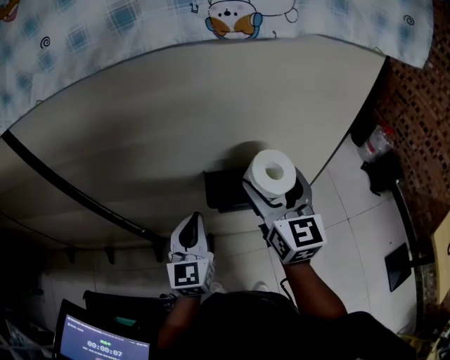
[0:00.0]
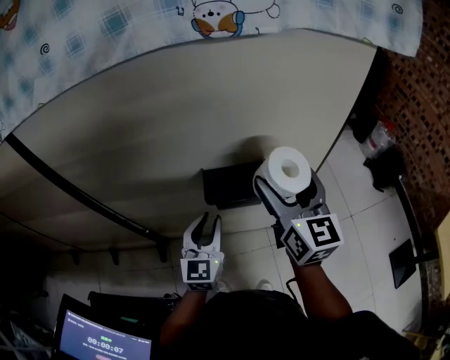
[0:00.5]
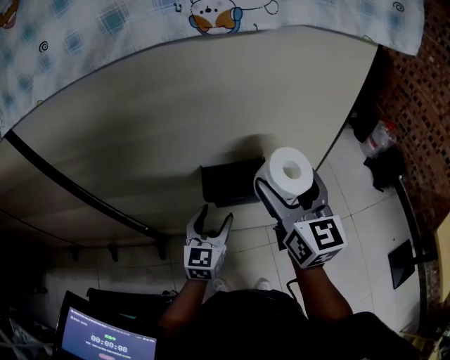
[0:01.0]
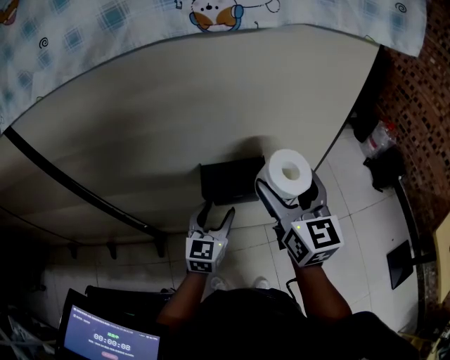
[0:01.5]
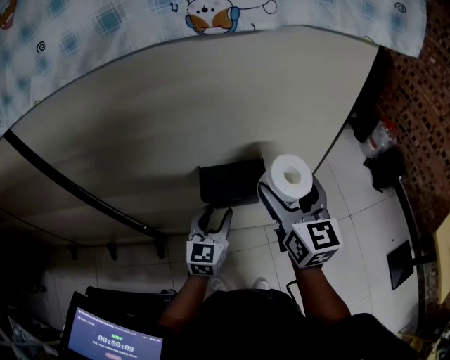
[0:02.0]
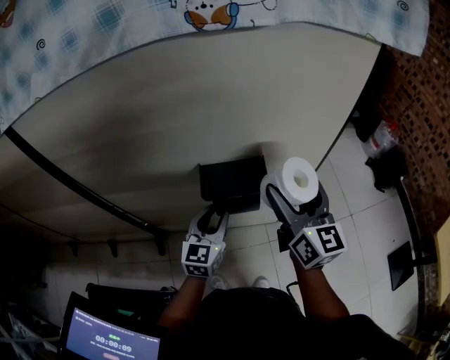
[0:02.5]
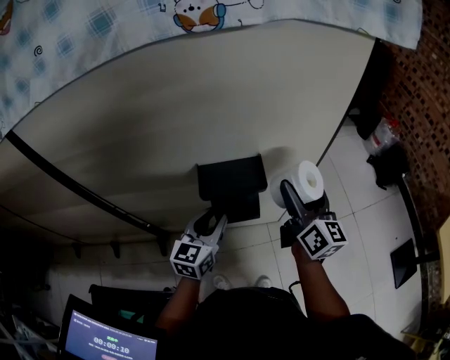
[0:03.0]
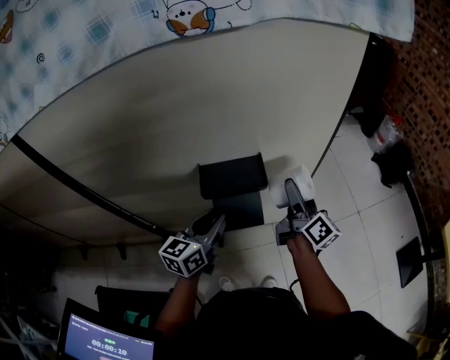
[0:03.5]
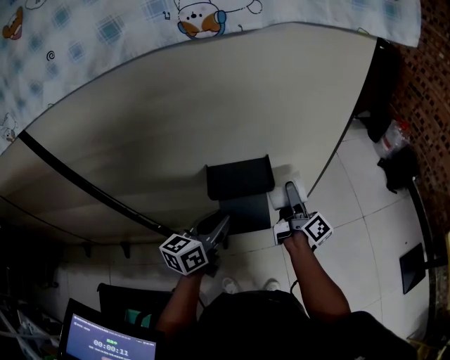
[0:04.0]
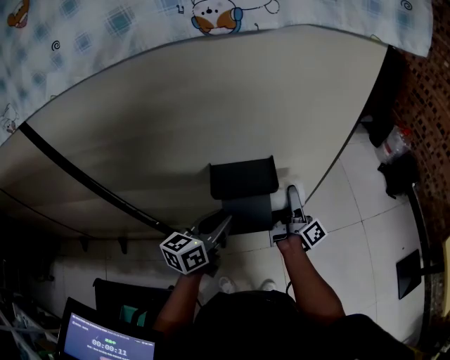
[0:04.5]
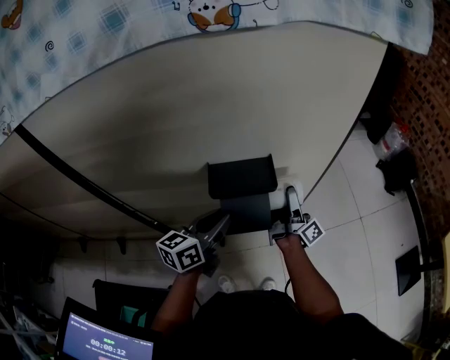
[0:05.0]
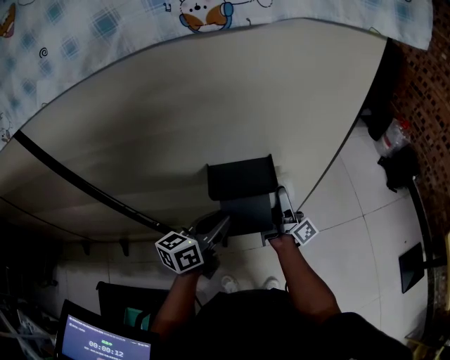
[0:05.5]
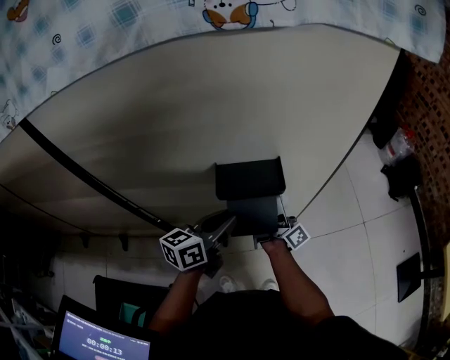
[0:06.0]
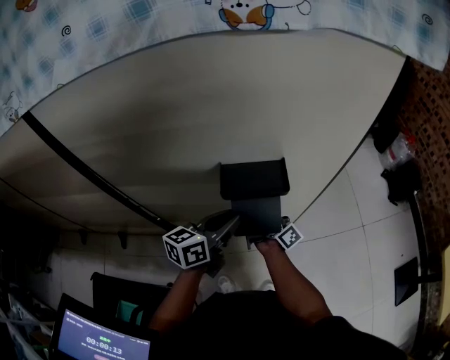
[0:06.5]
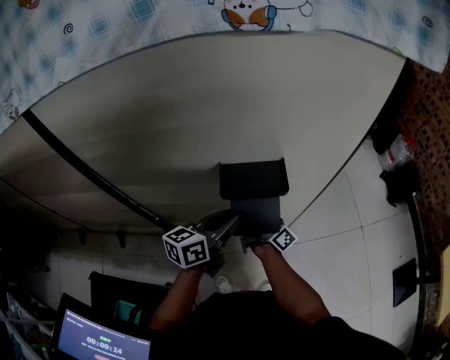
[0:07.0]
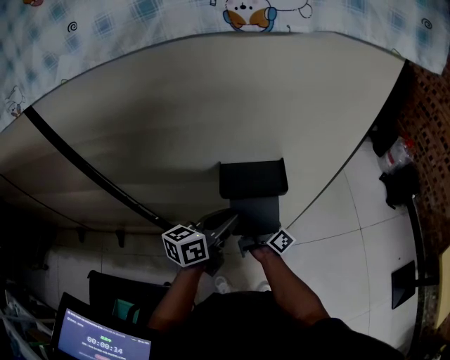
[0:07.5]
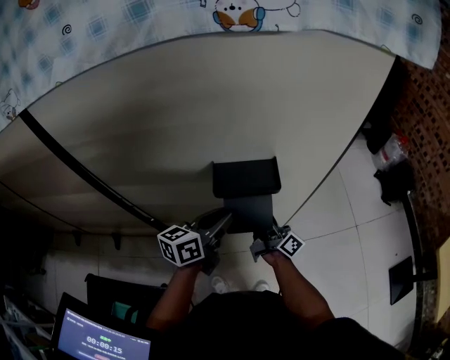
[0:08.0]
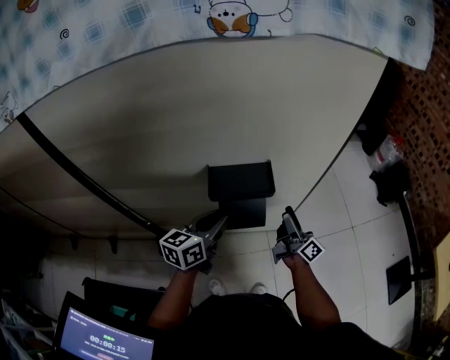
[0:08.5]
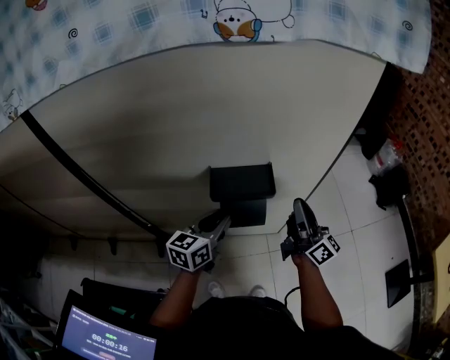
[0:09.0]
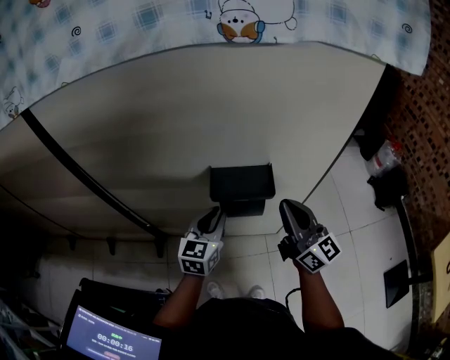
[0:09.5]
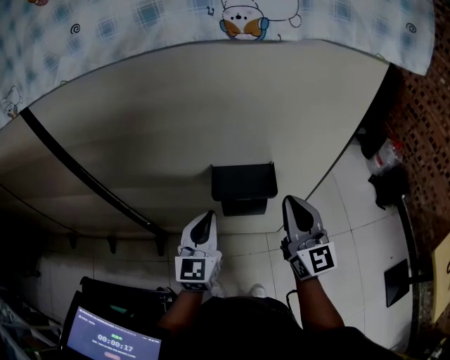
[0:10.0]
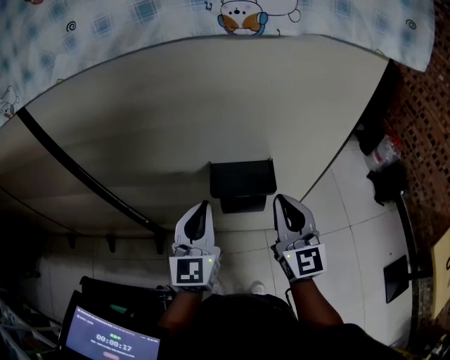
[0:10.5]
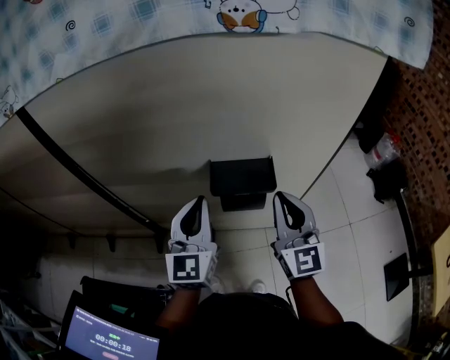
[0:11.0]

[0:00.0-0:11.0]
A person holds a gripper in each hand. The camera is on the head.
0:00.0 to 0:02.0: The left gripper heads downward and to the right, covering roughly 10 cm, and opens up. Meanwhile the right gripper shifts approximately 5 cm to the right.
0:02.0 to 0:03.5: The left gripper changes place by some 5 cm, and swivels roughly 20 degrees; the right gripper goes roughly 15 cm downward and to the right, and twists approximately 40 degrees clockwise, seen from behind.
0:03.5 to 0:05.5: The right gripper travels to the left by approximately 5 cm, and changes its angle by about 30 degrees.
0:05.5 to 0:07.5: The right gripper goes some 10 cm to the left.
0:07.5 to 0:09.0: The right gripper travels to the right and upward by roughly 20 cm, changes its angle by some 40 degrees, and closes up.
0:09.0 to 0:11.0: The right gripper travels to the left and upward by approximately 15 cm, and twists approximately 50 degrees counterclockwise, seen from behind. The left gripper shifts some 15 cm upward and to the left, and swivels approximately 40 degrees.

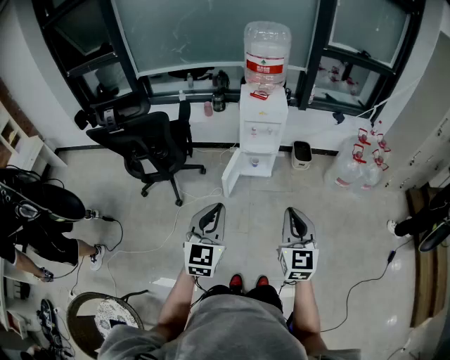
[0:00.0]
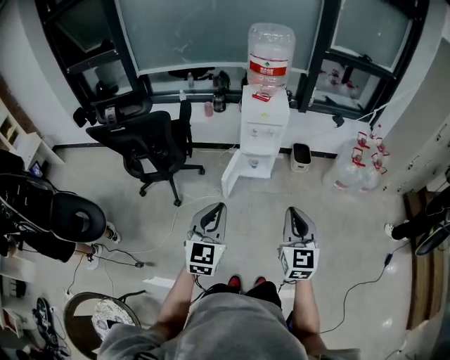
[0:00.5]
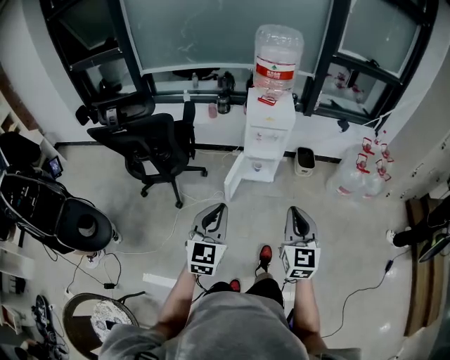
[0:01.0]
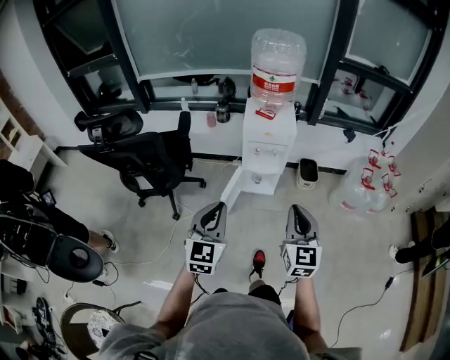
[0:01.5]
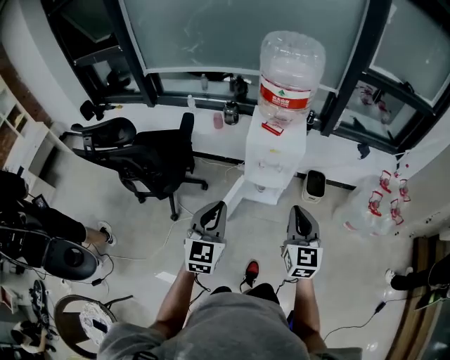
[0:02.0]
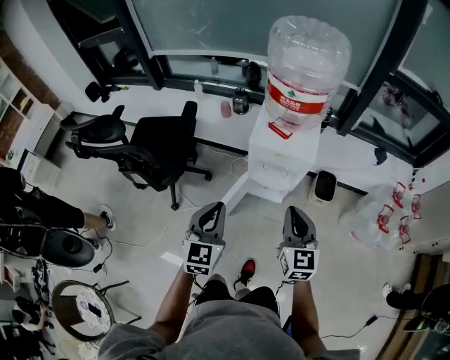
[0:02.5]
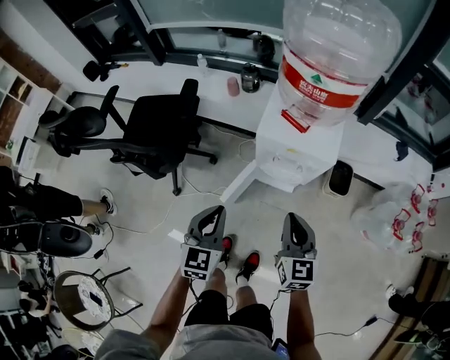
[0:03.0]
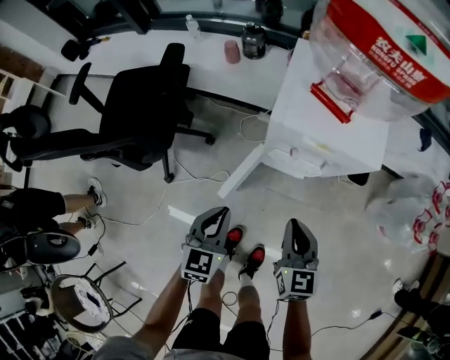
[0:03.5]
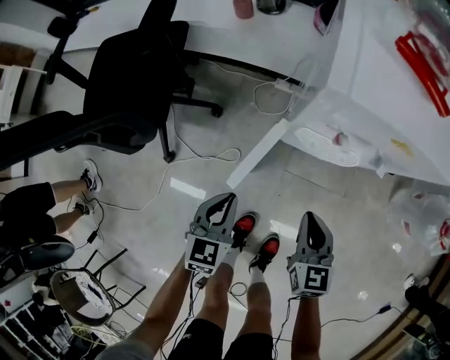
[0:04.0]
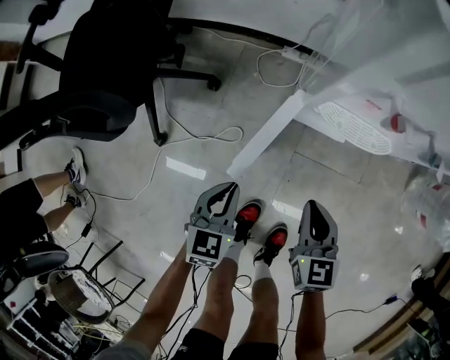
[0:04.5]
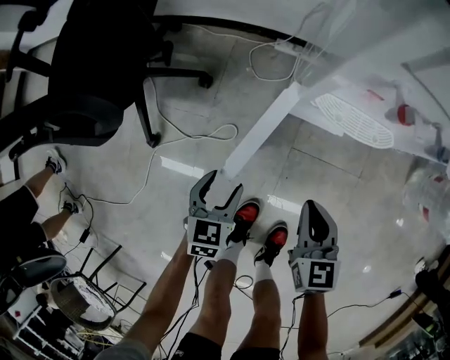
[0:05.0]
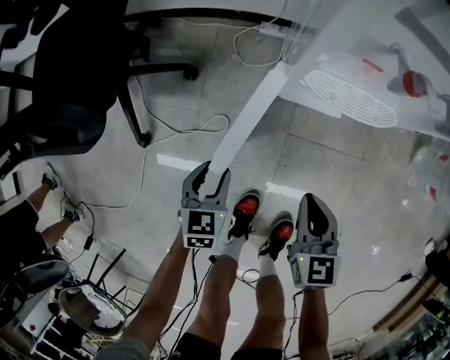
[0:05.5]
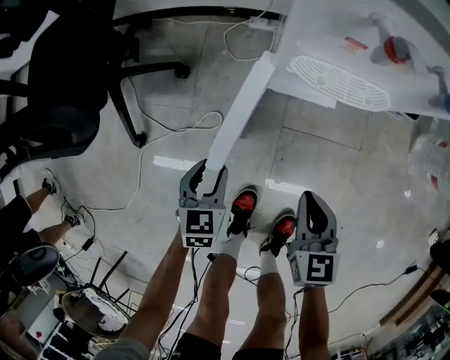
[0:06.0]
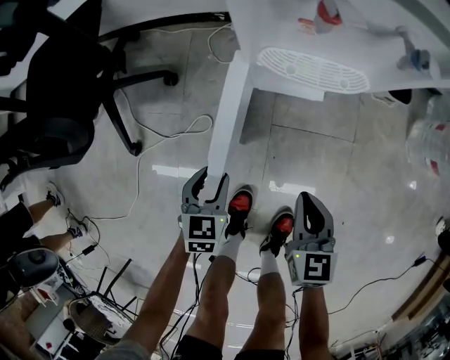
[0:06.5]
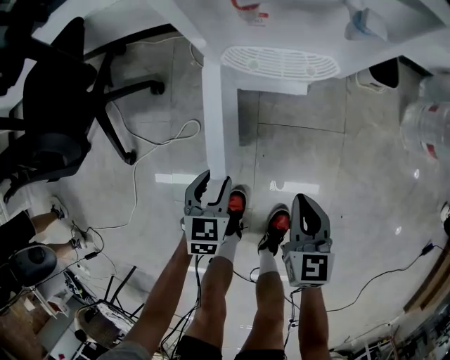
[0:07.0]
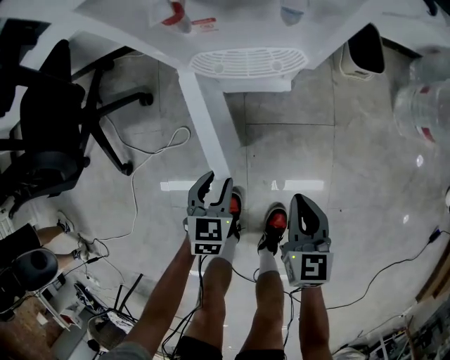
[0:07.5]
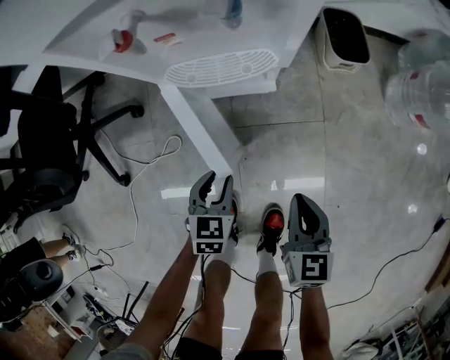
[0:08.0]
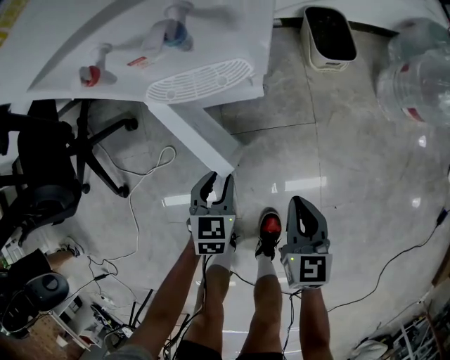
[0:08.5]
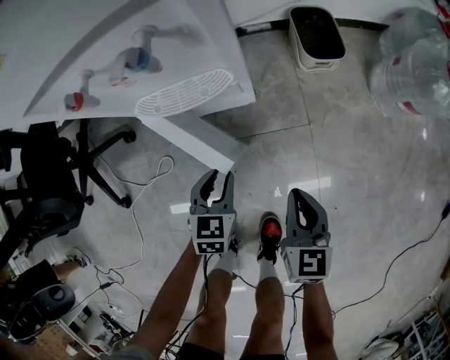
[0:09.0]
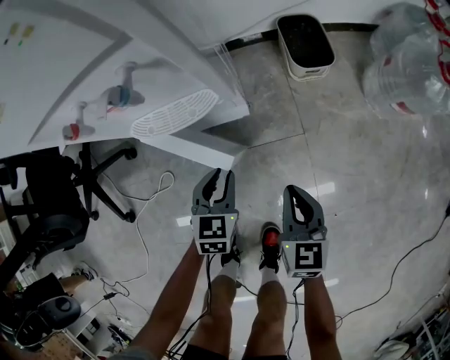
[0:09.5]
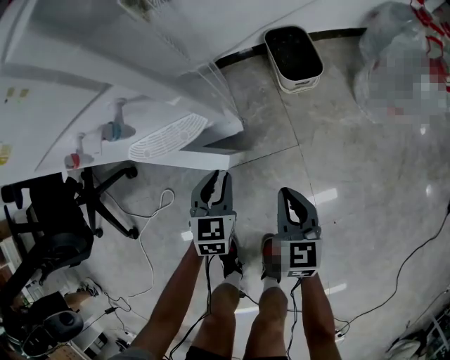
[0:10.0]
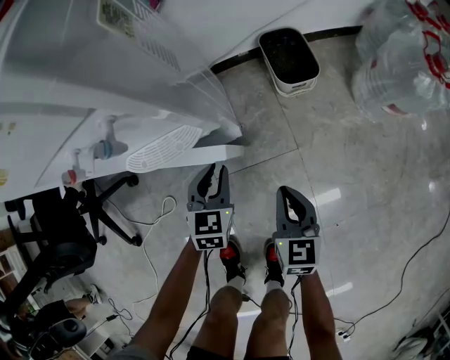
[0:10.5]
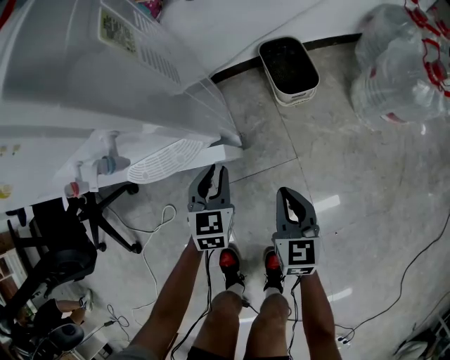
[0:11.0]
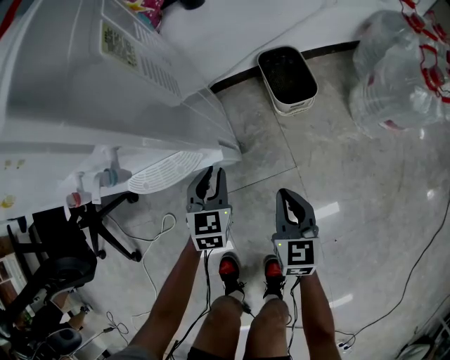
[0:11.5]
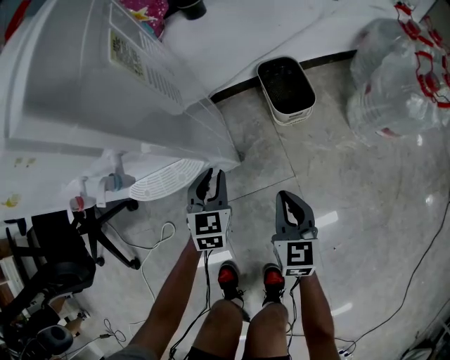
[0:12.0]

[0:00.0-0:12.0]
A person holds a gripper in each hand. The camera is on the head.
0:00.0 to 0:02.0: Both grippers travel together forward, about 30 cm.
0:02.0 to 0:04.0: Both grippers move downward, some 50 cm. The left gripper rotates some 30 degrees; the right gripper rotates some 30 degrees.
0:04.0 to 0:06.0: The two grippers go about 20 cm downward. The left gripper opens up.
0:06.0 to 0:08.0: Both grippers move to the right, roughly 15 cm.
0:08.0 to 0:10.0: The grippers both shift forward and to the right by some 15 cm.
0:10.0 to 0:12.0: Both grippers travel together forward, about 10 cm.

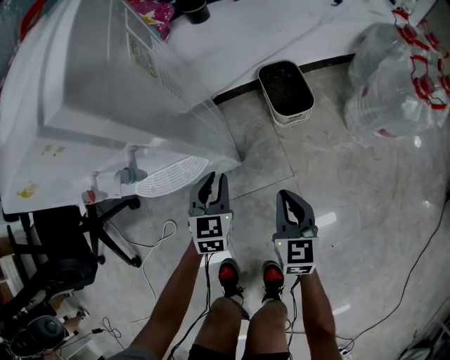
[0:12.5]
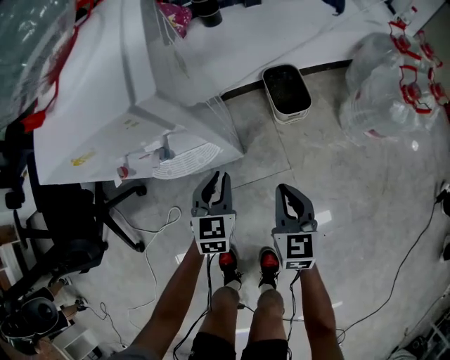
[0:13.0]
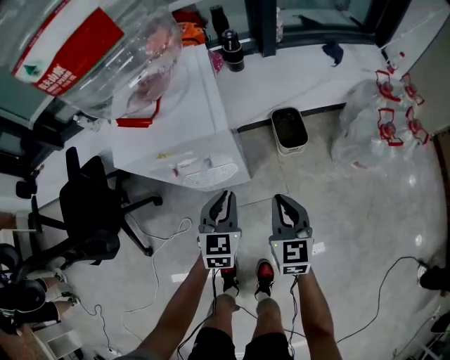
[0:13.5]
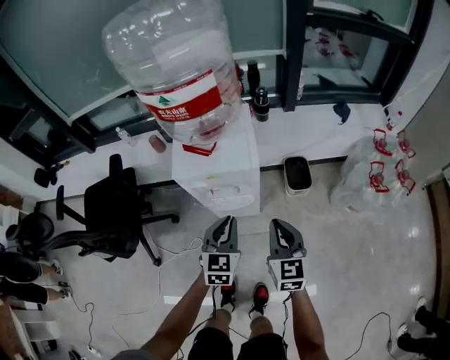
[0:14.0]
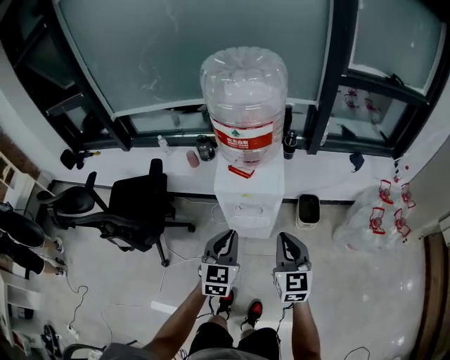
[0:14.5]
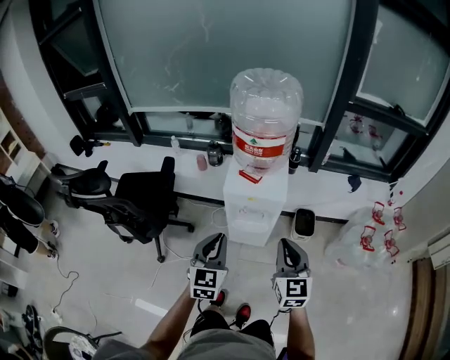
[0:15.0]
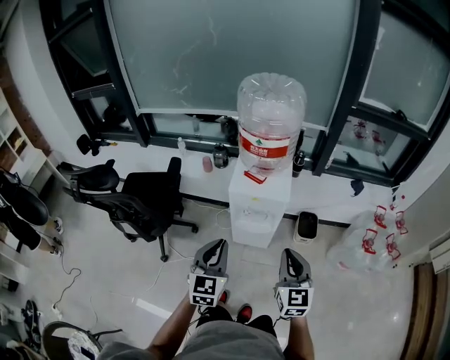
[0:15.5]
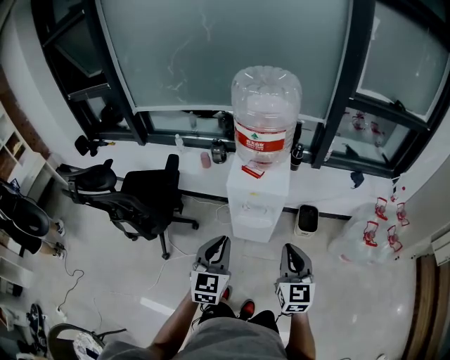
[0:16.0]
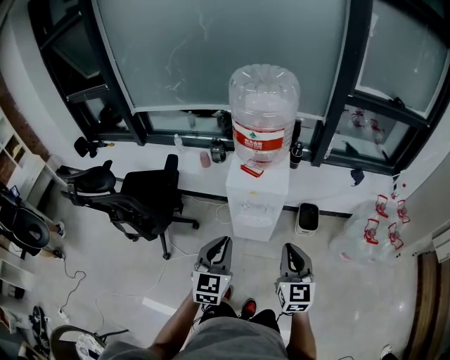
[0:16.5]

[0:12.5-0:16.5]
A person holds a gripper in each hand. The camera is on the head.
0:12.5 to 0:14.5: The two grippers go about 60 cm upward. The right gripper changes its angle by roughly 30 degrees. The left gripper changes its angle by some 20 degrees.
0:14.5 to 0:16.5: The two grippers go roughly 10 cm backward and upward.
